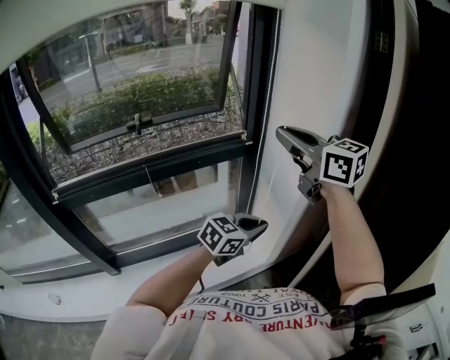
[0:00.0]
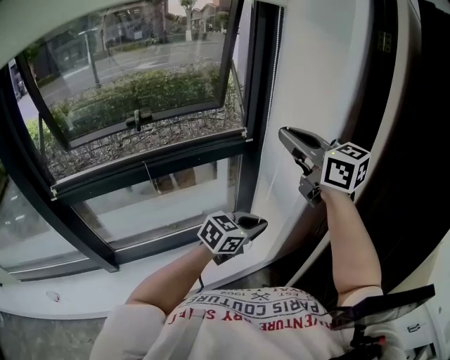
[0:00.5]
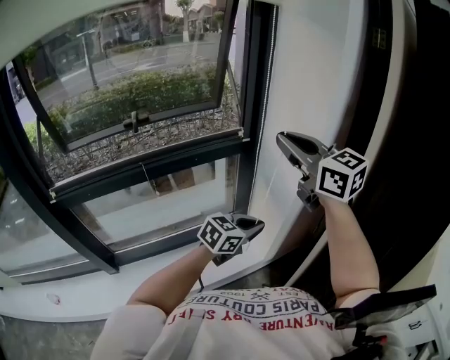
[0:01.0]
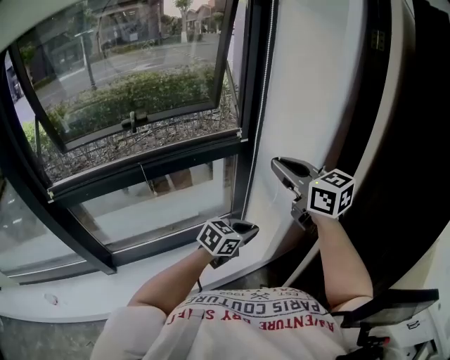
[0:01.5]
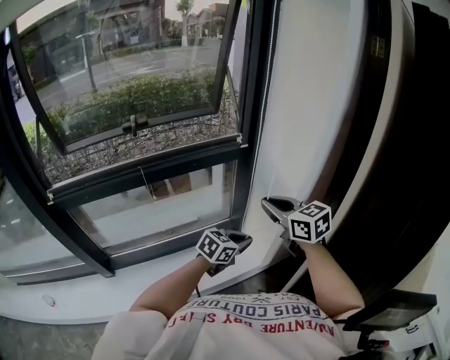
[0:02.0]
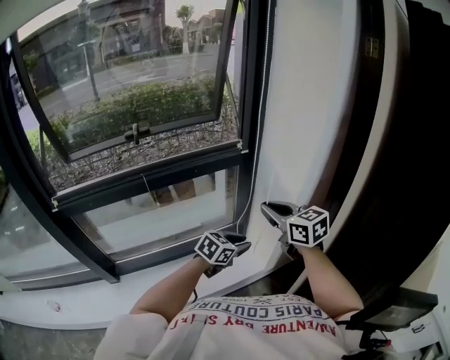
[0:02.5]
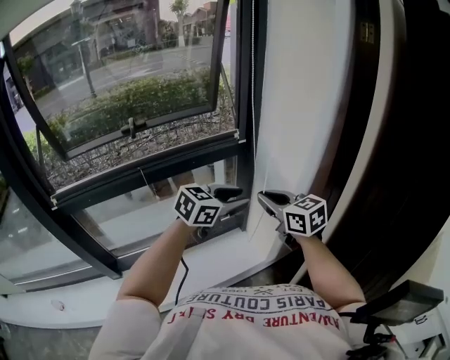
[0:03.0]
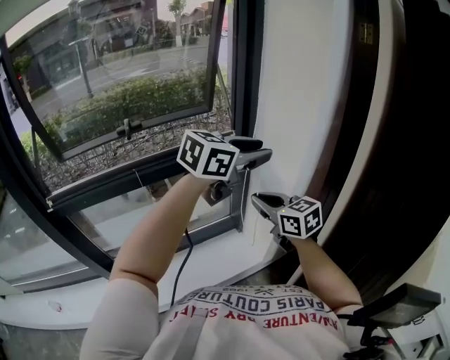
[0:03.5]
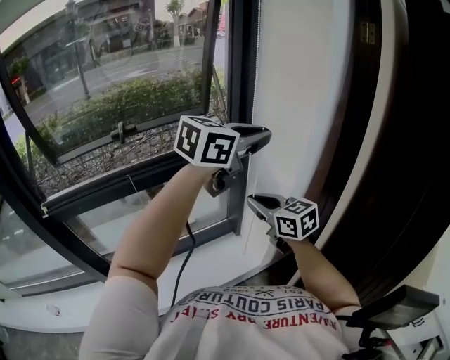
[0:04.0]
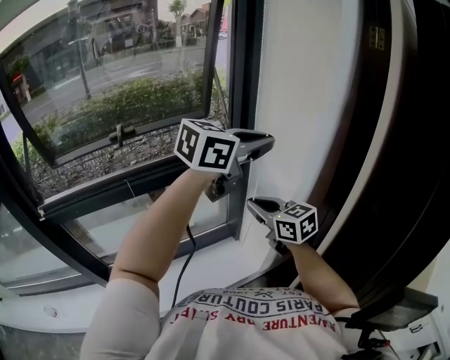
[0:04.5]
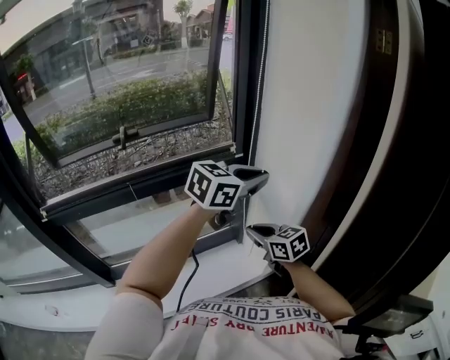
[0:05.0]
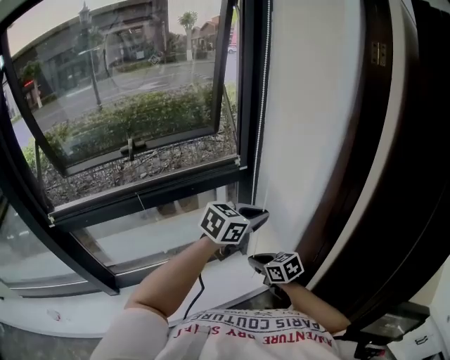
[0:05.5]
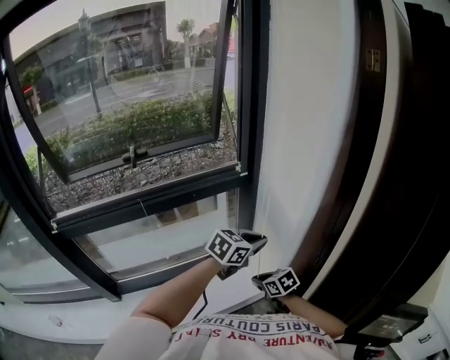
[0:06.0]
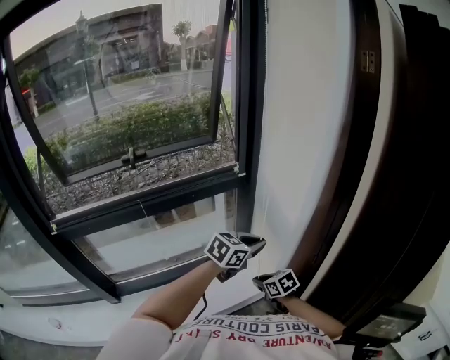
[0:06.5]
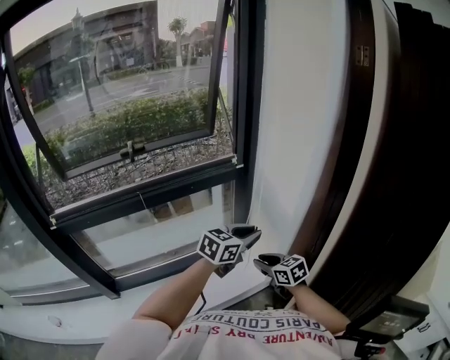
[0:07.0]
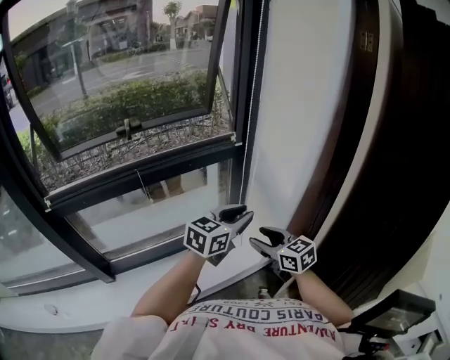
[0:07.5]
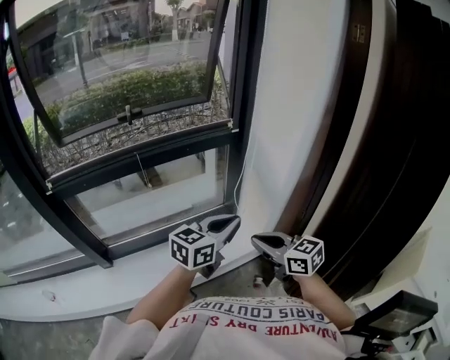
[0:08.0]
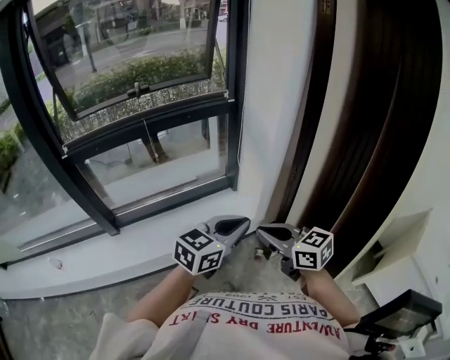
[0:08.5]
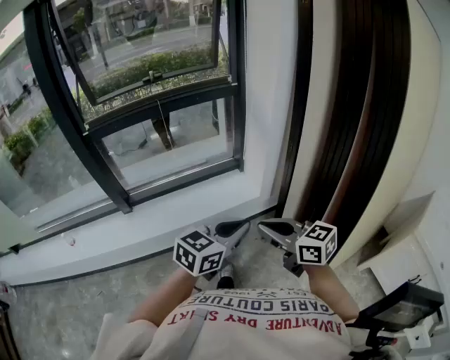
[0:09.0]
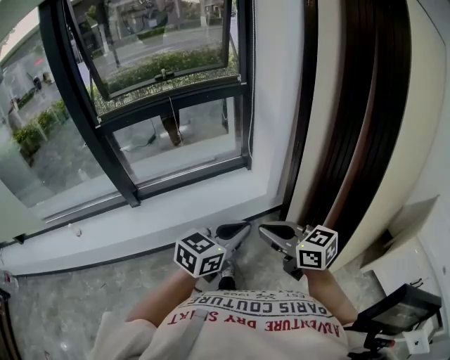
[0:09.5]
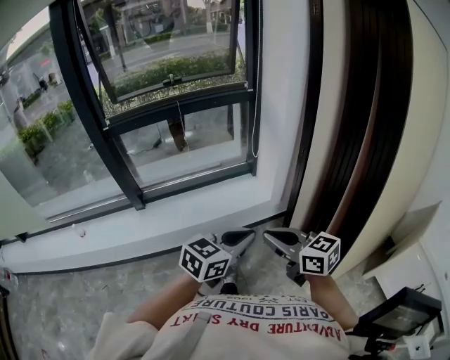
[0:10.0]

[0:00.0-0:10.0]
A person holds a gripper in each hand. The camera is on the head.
0:00.0 to 0:02.0: The left gripper goes some 10 cm downward, while the right gripper goes roughly 20 cm downward.
0:02.0 to 0:04.0: The left gripper travels upward by approximately 35 cm, changes its angle by roughly 20 degrees, and opens, then closes again.
0:04.0 to 0:06.0: Both grippers move downward, about 25 cm. The right gripper rotates approximately 30 degrees.
0:06.0 to 0:08.0: The left gripper heads backward and to the left, covering roughly 15 cm, changes its angle by approximately 20 degrees, and opens and closes again. The right gripper goes about 20 cm upward and backward, swivels roughly 30 degrees, and opens, then closes again.
0:08.0 to 0:10.0: The two grippers go approximately 35 cm backward.

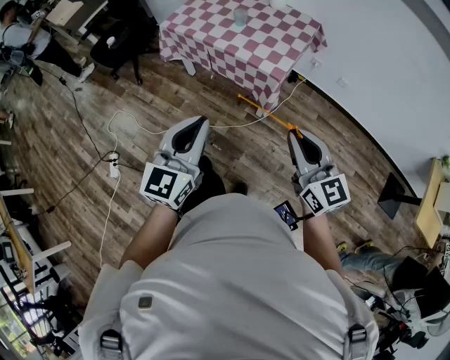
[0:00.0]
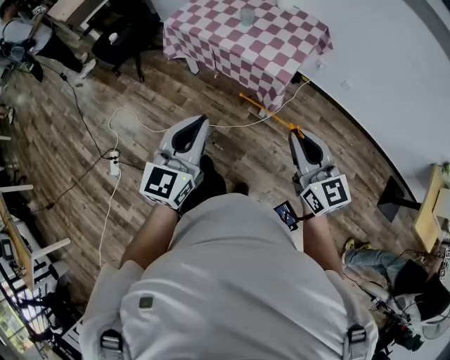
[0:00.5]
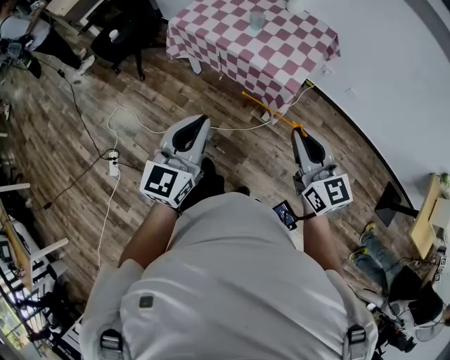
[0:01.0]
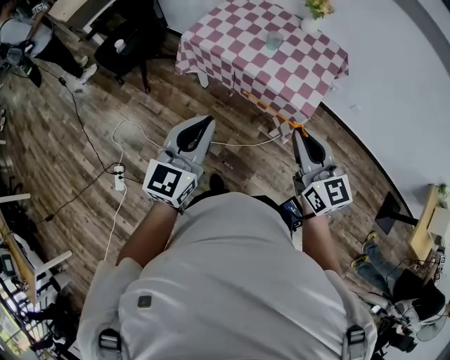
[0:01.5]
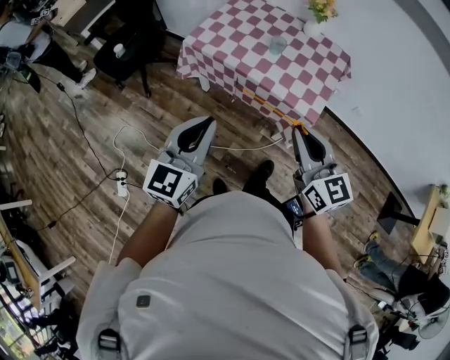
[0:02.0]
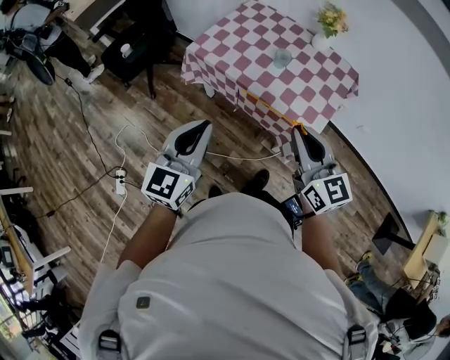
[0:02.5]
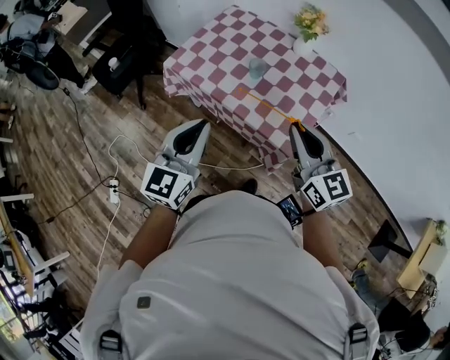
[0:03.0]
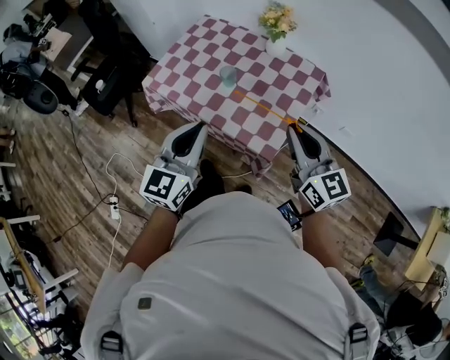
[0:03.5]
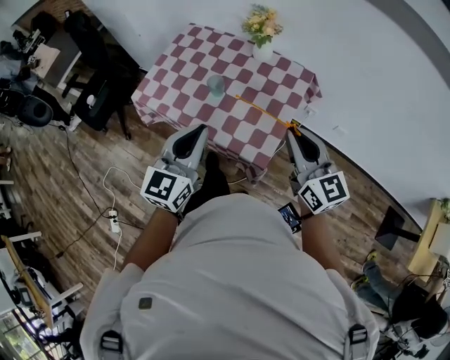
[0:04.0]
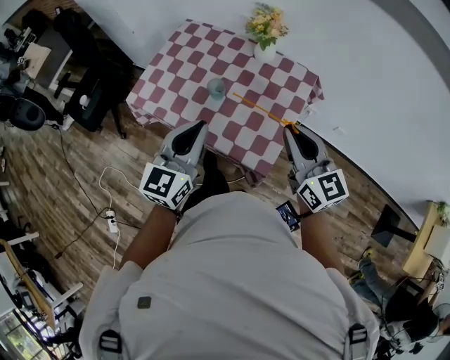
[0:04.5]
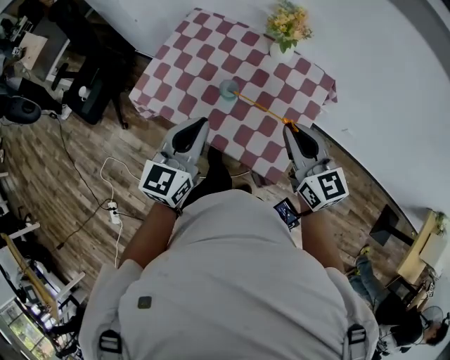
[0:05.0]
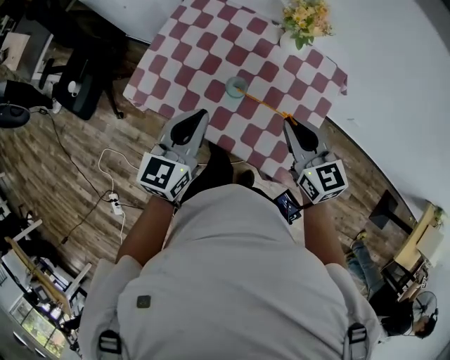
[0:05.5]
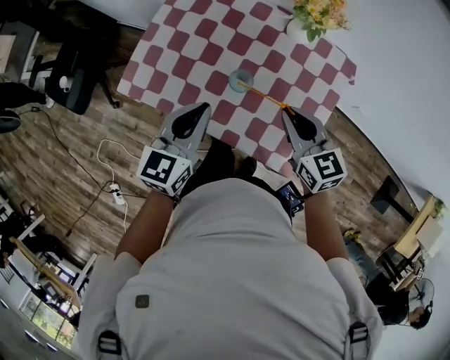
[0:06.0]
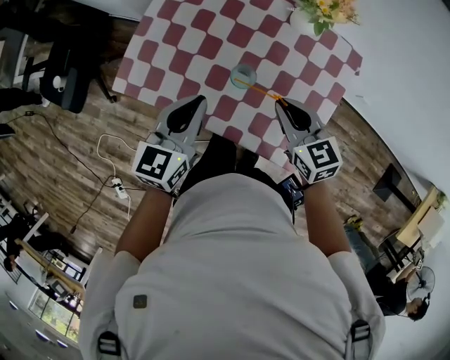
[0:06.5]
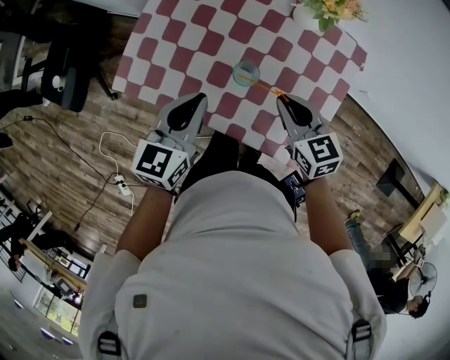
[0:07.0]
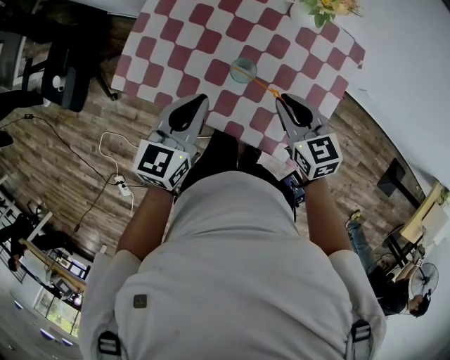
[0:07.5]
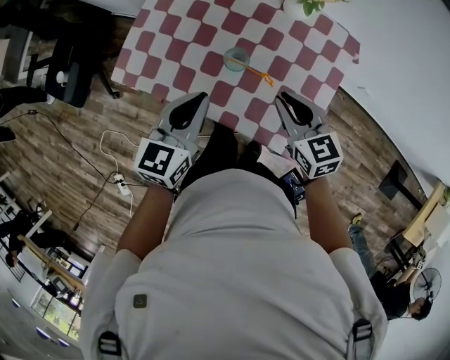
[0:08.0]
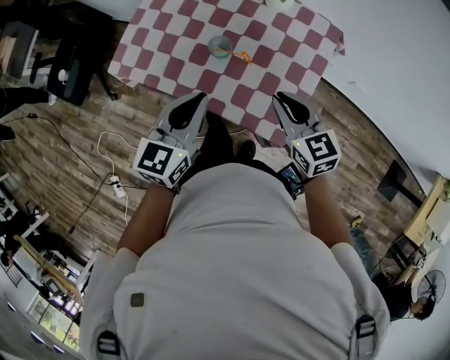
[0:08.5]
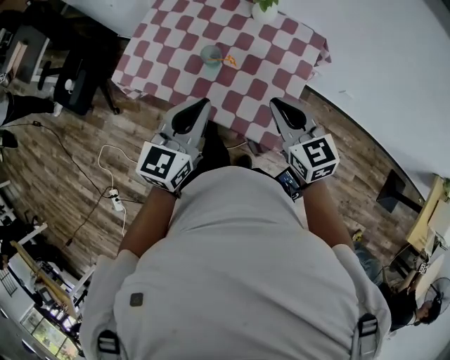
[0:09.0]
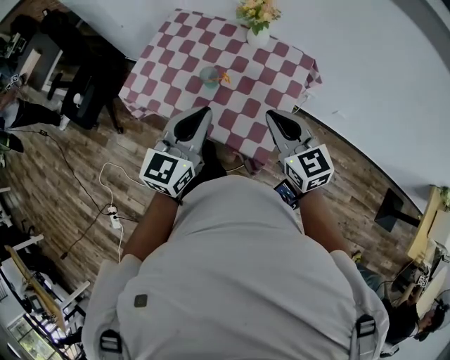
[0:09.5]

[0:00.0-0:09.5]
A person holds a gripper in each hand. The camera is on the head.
0:00.0 to 0:02.0: Both grippers travel together forward and to the left, roughly 25 cm.
0:02.0 to 0:04.0: Both grippers travel together to the right and forward, approximately 35 cm.
0:04.0 to 0:05.5: The left gripper goes approximately 25 cm forward, to the left and downward. Meanwhile the right gripper heads forward, downward and to the left, covering roughly 25 cm.
0:05.5 to 0:07.5: The two grippers go approximately 10 cm downward.
0:07.5 to 0:09.5: Both grippers travel together backward, upward and to the right, about 25 cm. The left gripper turns by roughly 20 degrees; the right gripper rotates some 20 degrees.

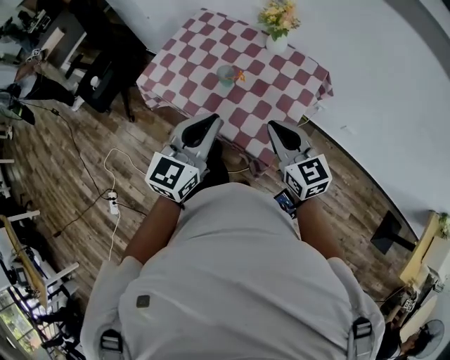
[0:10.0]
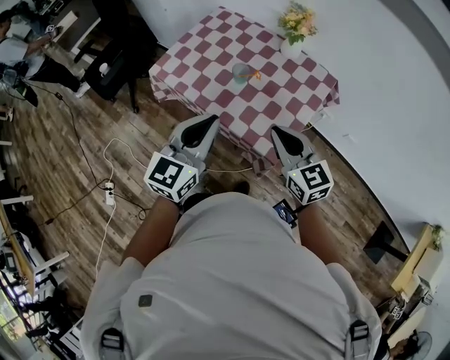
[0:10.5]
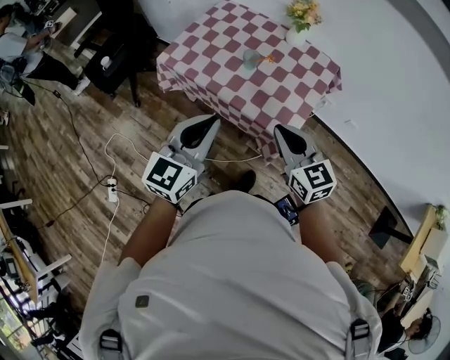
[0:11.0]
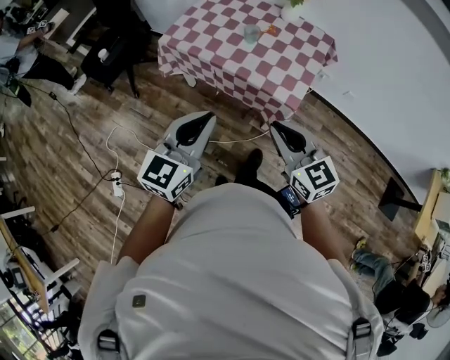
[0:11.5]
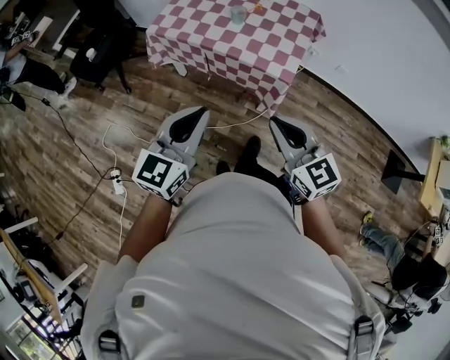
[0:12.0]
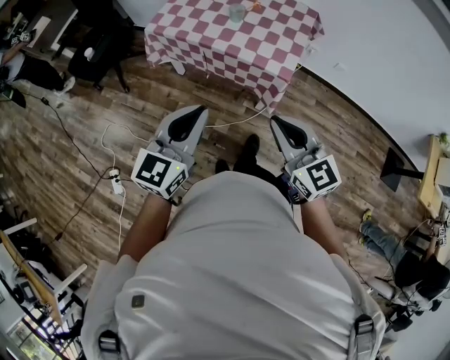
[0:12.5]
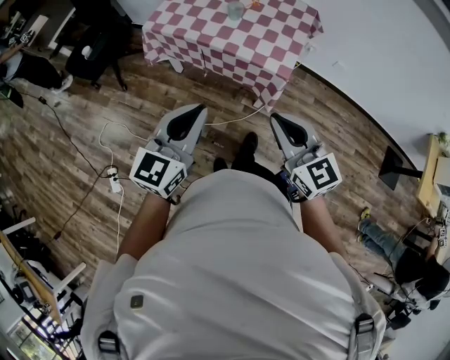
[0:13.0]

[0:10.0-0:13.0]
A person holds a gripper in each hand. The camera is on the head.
0:10.0 to 0:11.5: Both grippers travel together backward and to the left, some 30 cm.
0:11.5 to 0:13.0: The two grippers go roughly 5 cm backward.

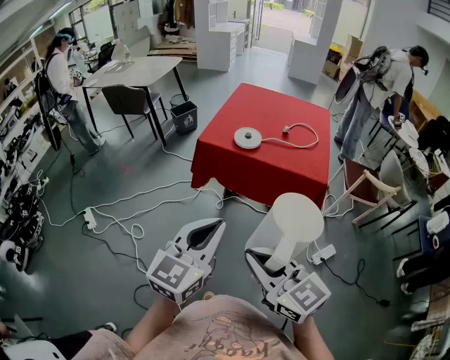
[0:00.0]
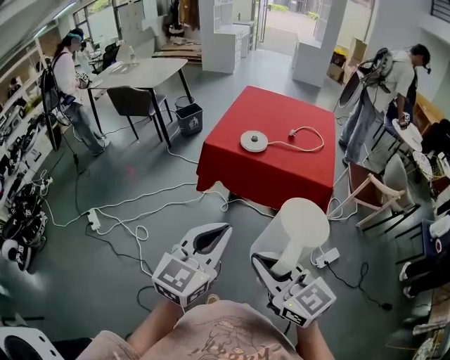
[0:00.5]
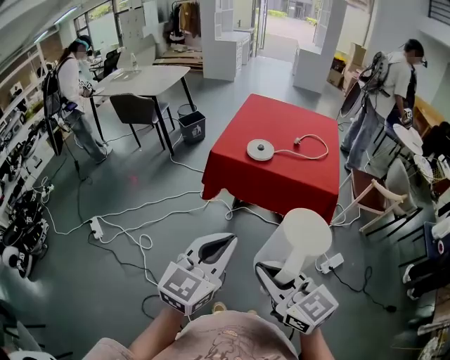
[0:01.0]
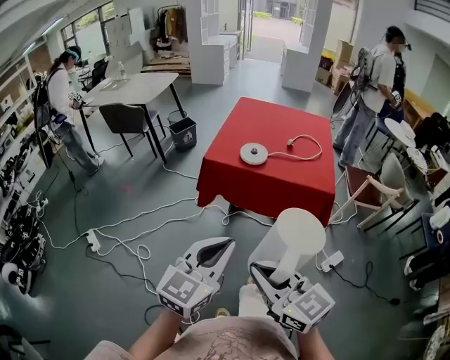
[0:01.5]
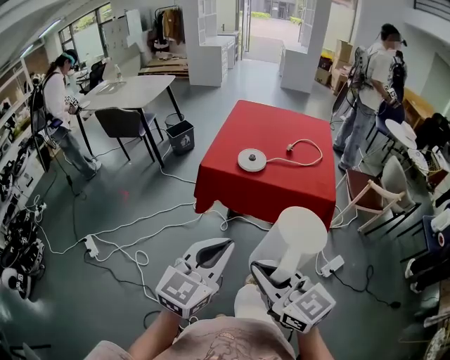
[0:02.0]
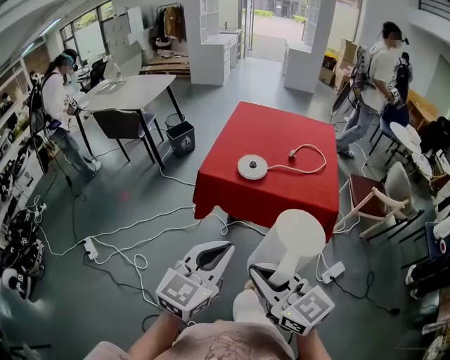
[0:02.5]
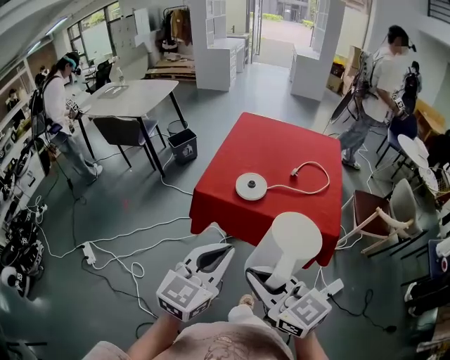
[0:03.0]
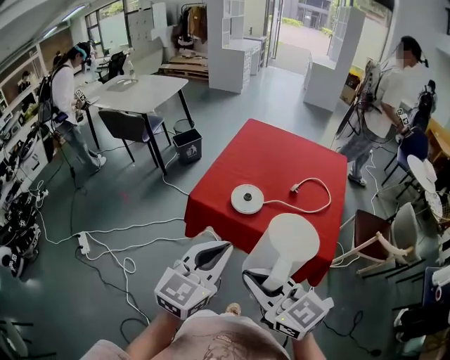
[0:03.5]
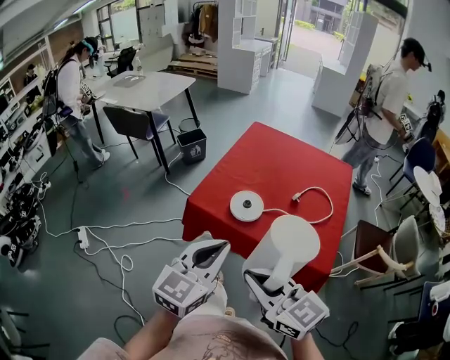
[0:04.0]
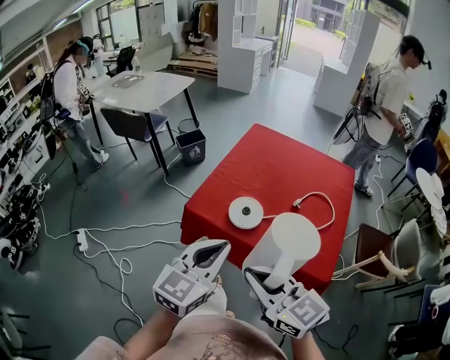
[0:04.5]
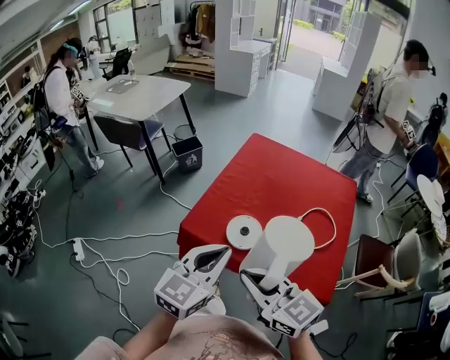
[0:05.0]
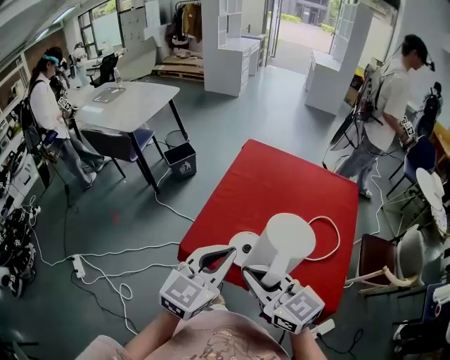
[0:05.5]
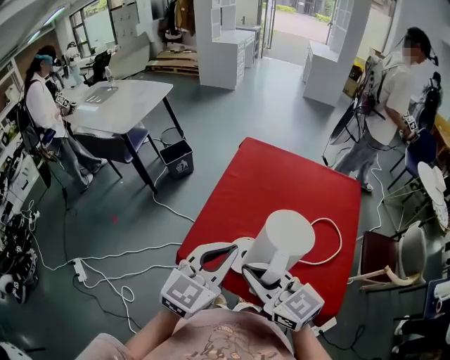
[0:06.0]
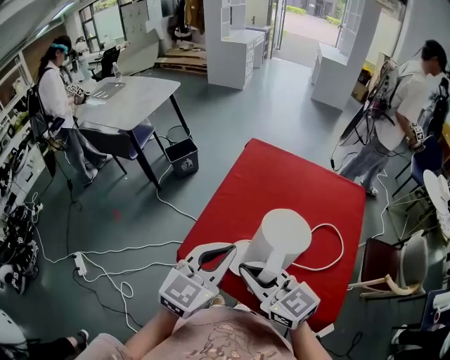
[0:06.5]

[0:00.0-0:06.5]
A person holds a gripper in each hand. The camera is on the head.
0:00.0 to 0:02.0: The two grippers go about 5 cm forward.
0:02.0 to 0:04.5: The two grippers go roughly 30 cm forward and to the right.
0:04.5 to 0:06.5: The two grippers go about 20 cm forward.
